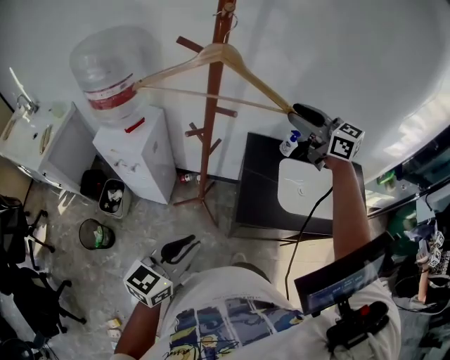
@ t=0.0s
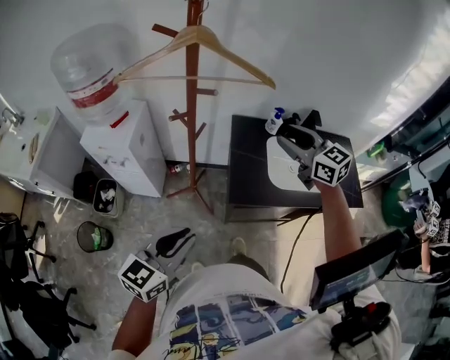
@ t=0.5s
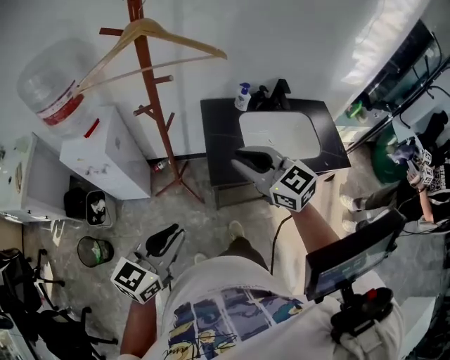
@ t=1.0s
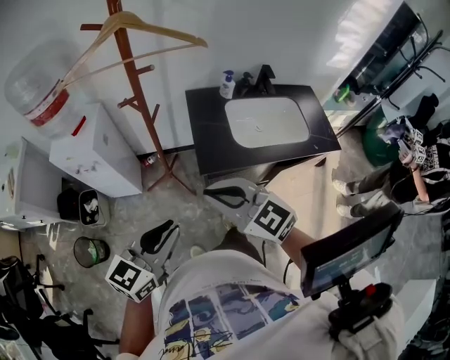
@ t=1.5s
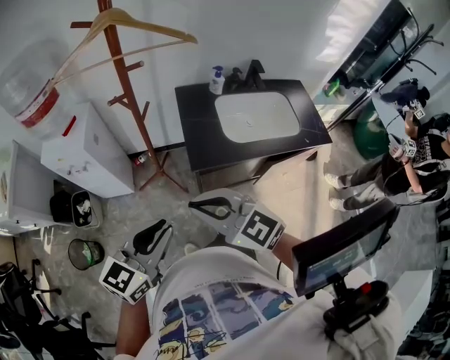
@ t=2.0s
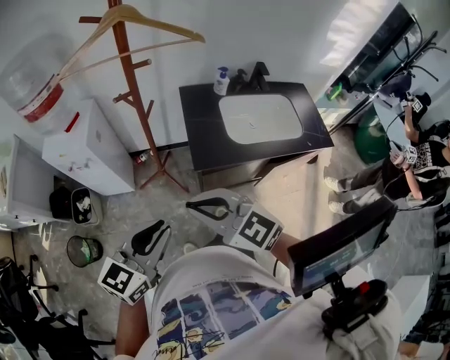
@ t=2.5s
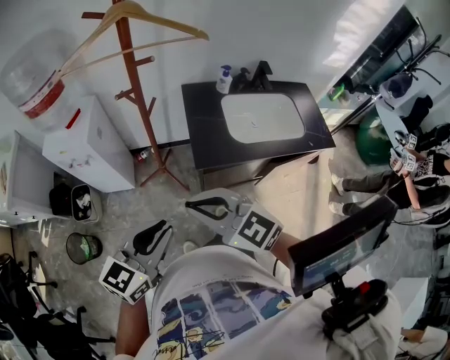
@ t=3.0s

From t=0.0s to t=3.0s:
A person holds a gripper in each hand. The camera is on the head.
From t=0.0s to t=1.5s: The left gripper travels backward by roughly 10 cm; the right gripper travels backward by some 35 cm, and closes its fingers.
From t=1.5s to t=3.0s: The right gripper changes place by approximately 5 cm.

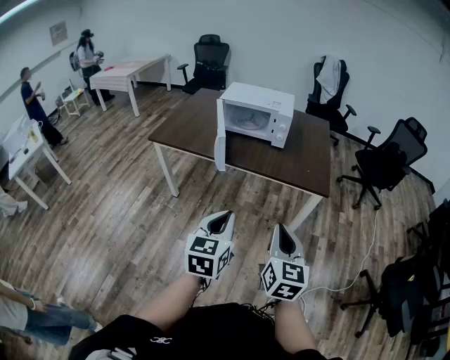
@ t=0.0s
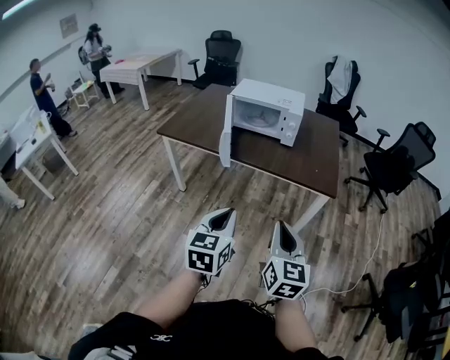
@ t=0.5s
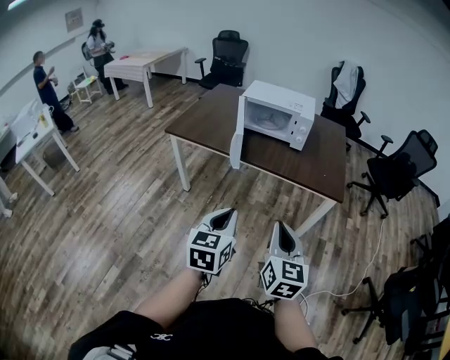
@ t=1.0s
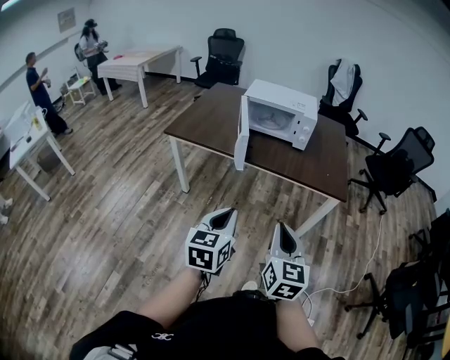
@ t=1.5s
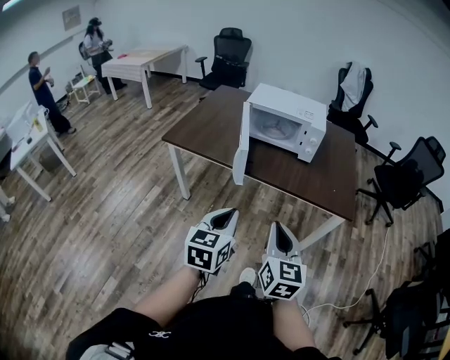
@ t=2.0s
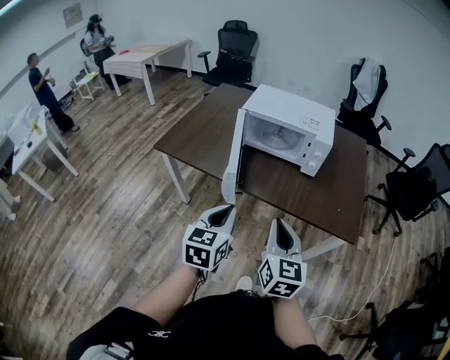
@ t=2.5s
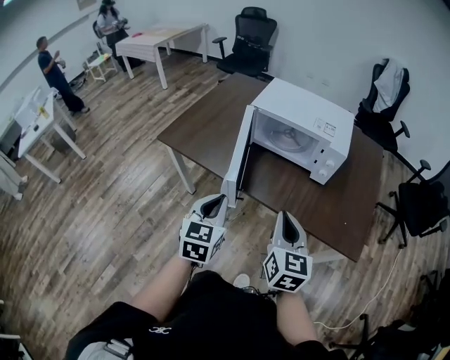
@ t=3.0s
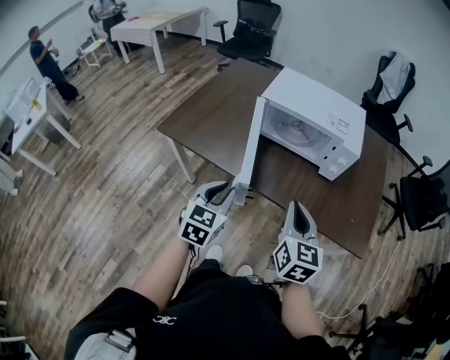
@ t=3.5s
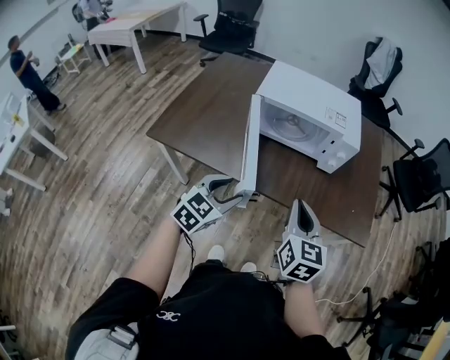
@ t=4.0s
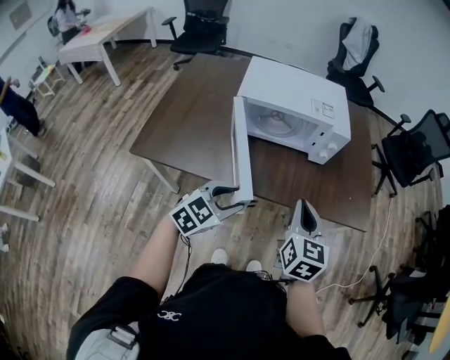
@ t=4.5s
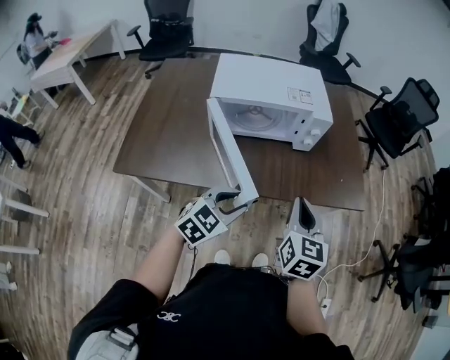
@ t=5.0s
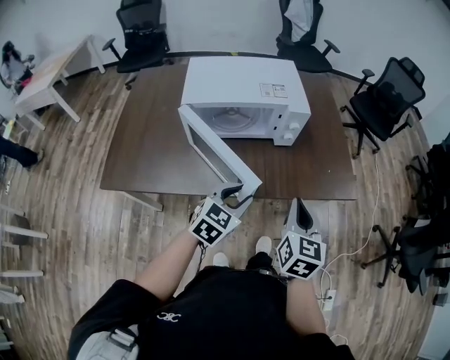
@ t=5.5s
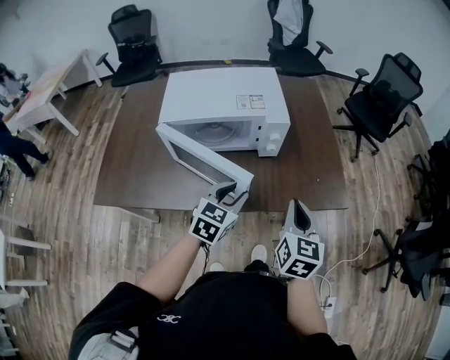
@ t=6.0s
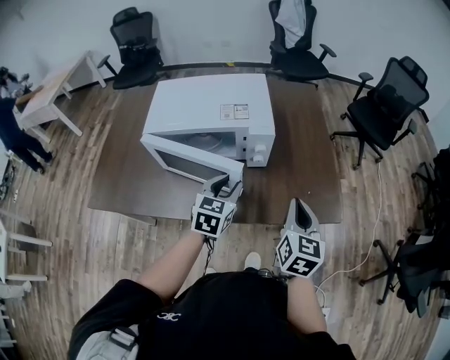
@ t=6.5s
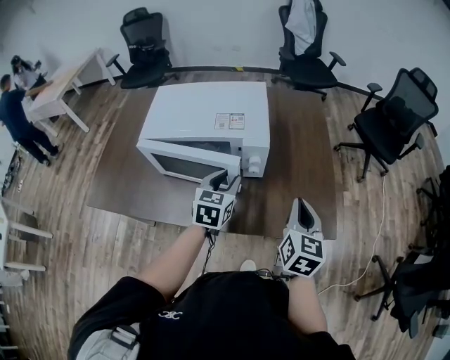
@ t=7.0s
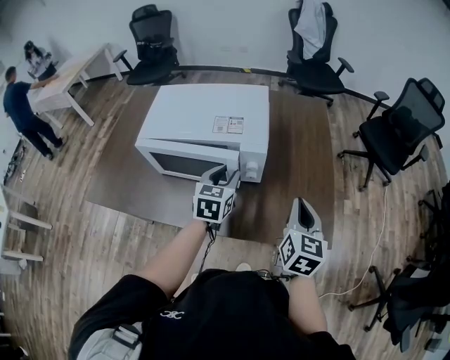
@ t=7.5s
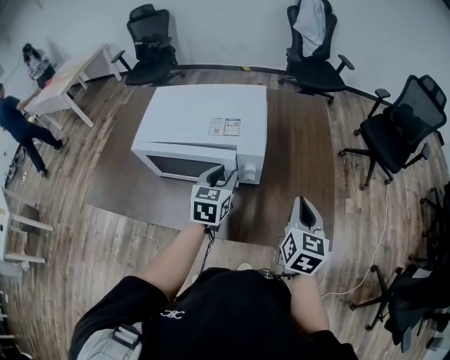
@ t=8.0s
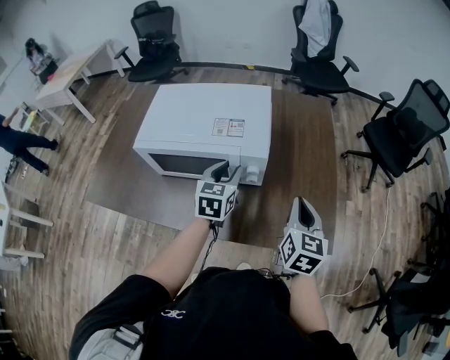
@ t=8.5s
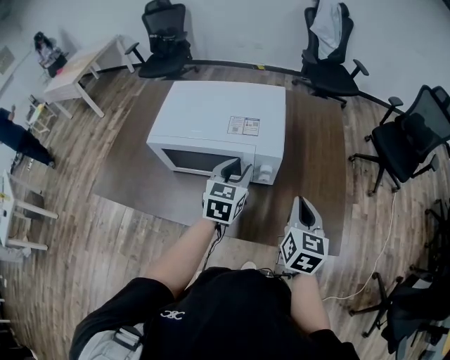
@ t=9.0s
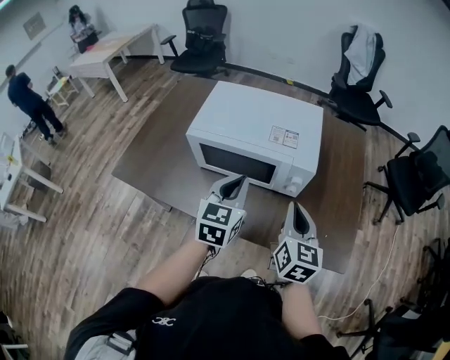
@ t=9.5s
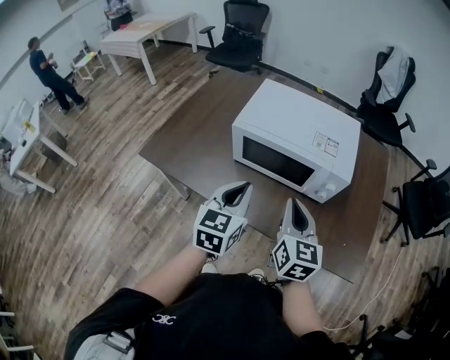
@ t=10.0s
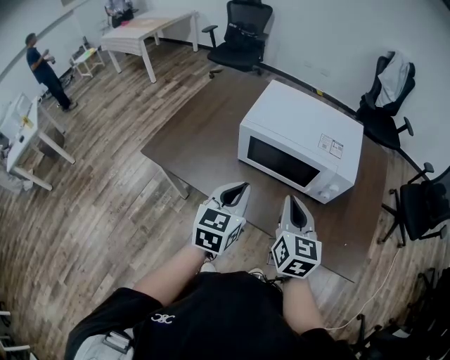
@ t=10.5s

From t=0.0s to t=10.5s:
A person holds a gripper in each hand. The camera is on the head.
From t=0.0s to t=2.0s: The left gripper heads forward and to the left, covering about 15 cm. The right gripper travels to the left and forward by roughly 20 cm.
From t=2.0s to t=4.0s: Both grippers move forward, roughly 30 cm. The left gripper swivels approximately 30 degrees, and opens.
From t=4.0s to t=6.5s: The left gripper goes approximately 30 cm forward and to the right. Meanwhile the right gripper shifts about 25 cm to the right and forward, and changes its angle by about 20 degrees.
From t=6.5s to t=8.5s: The grippers both shift forward by approximately 10 cm.
From t=8.5s to t=10.5s: The left gripper goes about 30 cm to the left and backward, and closes up; the right gripper goes some 30 cm to the left, and swivels some 30 degrees.

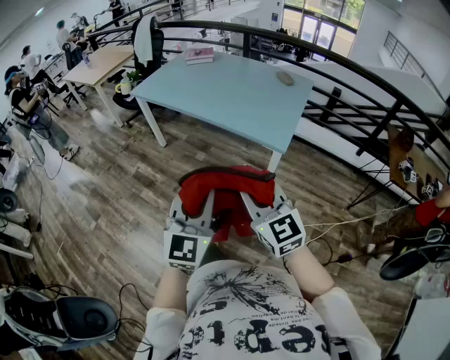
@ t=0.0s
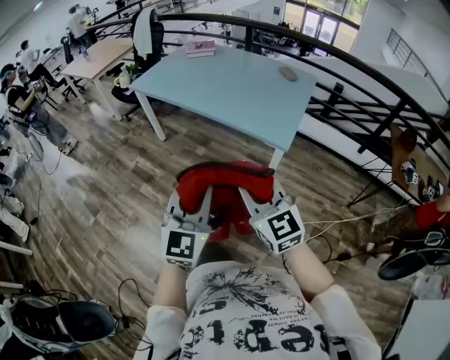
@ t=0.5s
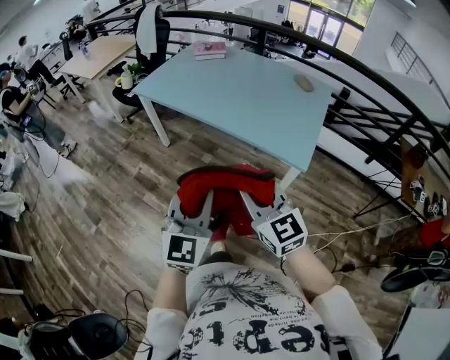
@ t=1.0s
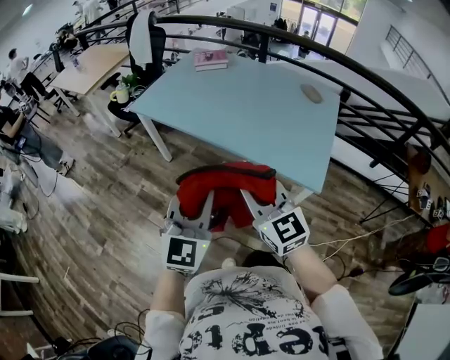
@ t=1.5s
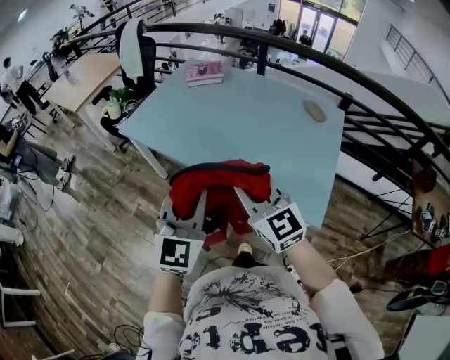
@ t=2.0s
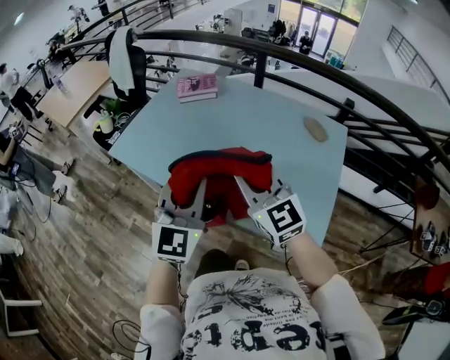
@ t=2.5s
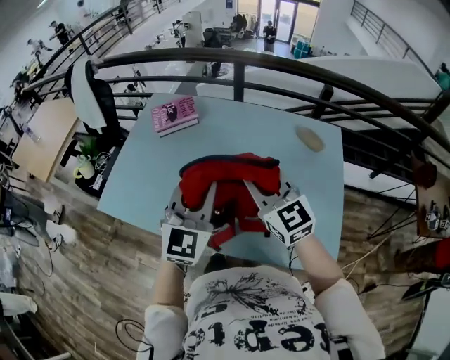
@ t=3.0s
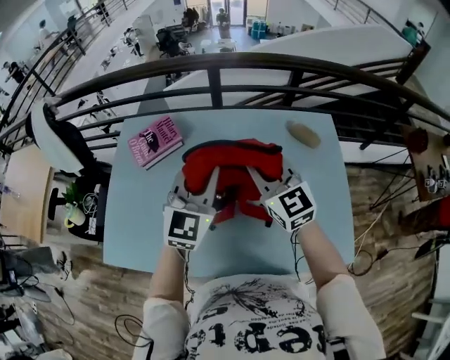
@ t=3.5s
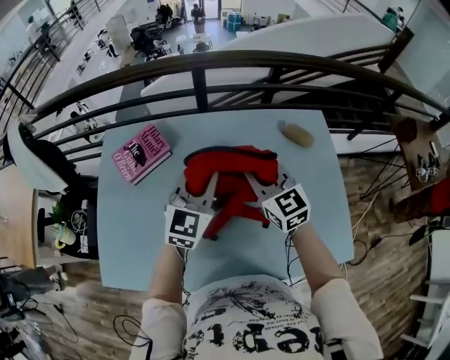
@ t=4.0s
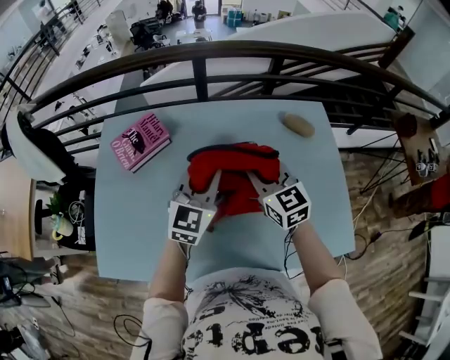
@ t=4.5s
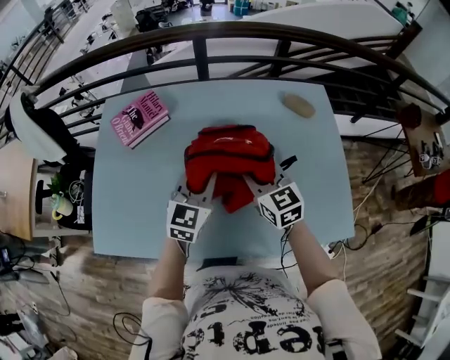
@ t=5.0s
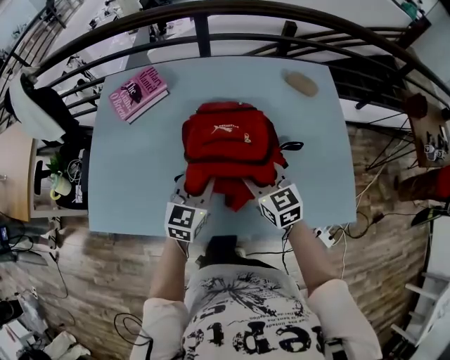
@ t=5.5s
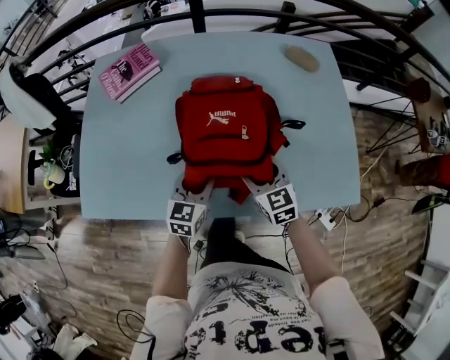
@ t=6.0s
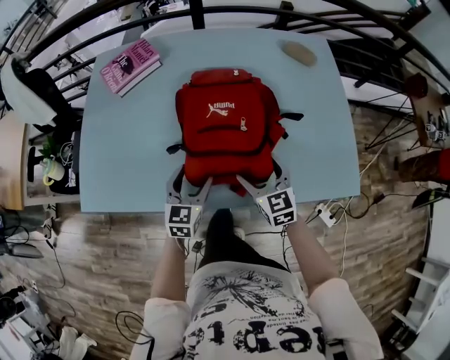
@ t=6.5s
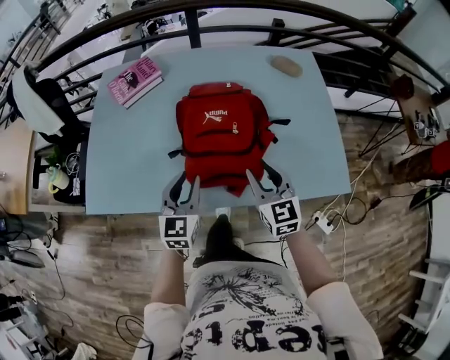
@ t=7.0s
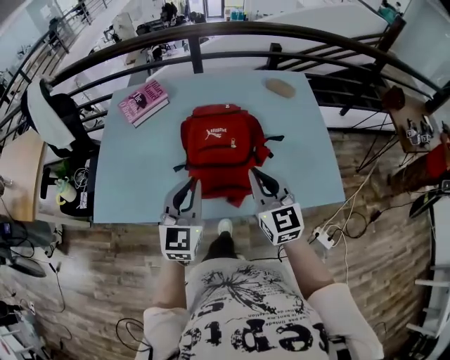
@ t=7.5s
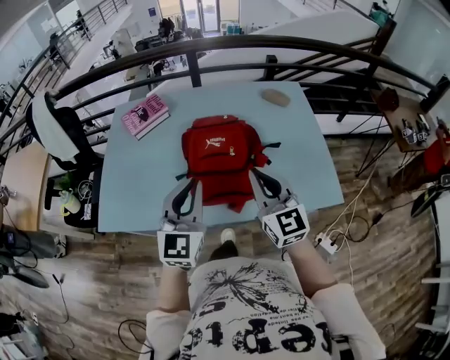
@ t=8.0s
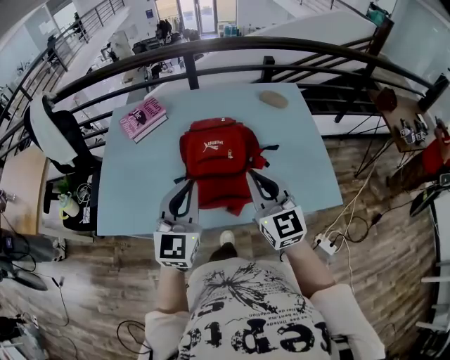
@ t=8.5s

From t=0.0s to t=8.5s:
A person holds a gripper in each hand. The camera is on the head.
From t=0.0s to t=2.0s: Both grippers are carried forward, roughly 50 cm.
From t=2.0s to t=4.0s: Both grippers are carried about 60 cm. The left gripper turns by approximately 40 degrees, while the right gripper swivels some 40 degrees.
From t=4.0s to t=6.5s: Both grippers move backward and downward, some 35 cm. The right gripper opens up. The left gripper turns by about 30 degrees, and opens up.
From t=6.5s to t=8.5s: The two grippers go about 25 cm upward. The left gripper rotates roughly 30 degrees, and closes, while the right gripper changes its angle by approximately 30 degrees, and closes up.

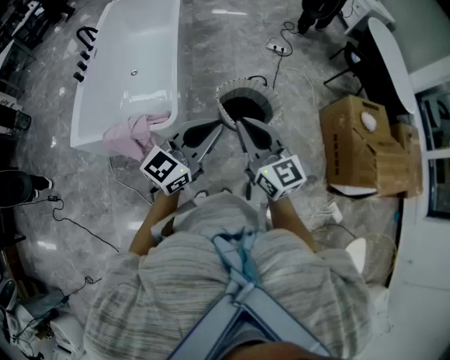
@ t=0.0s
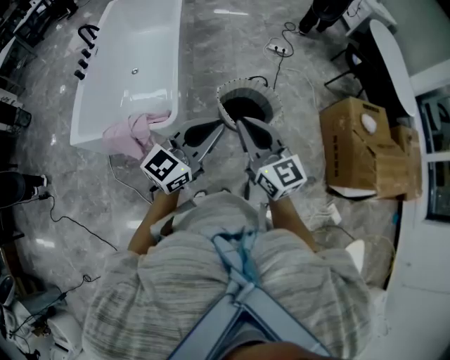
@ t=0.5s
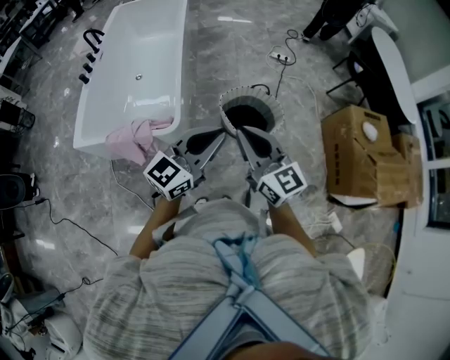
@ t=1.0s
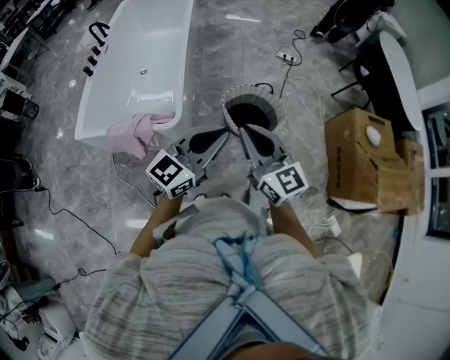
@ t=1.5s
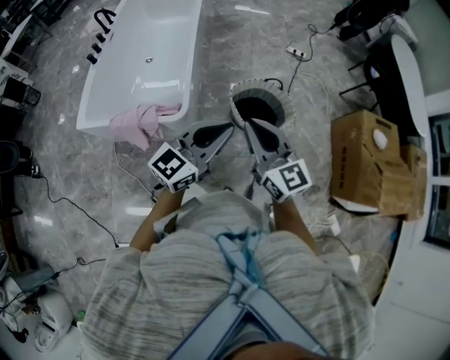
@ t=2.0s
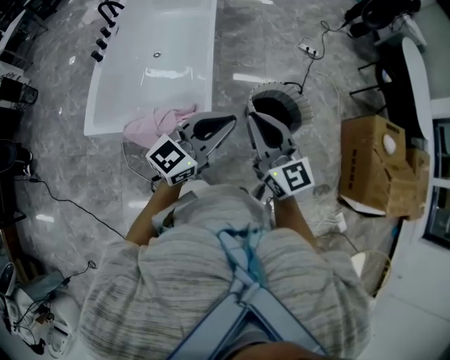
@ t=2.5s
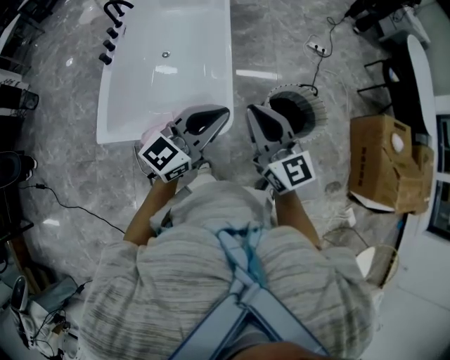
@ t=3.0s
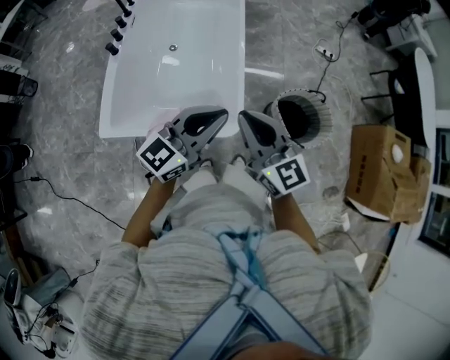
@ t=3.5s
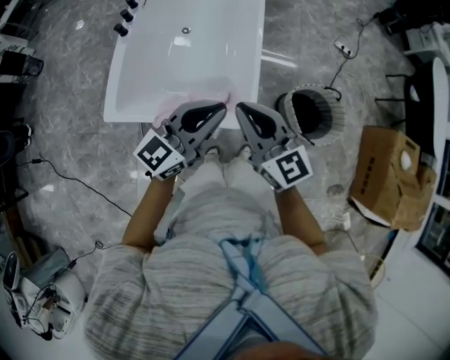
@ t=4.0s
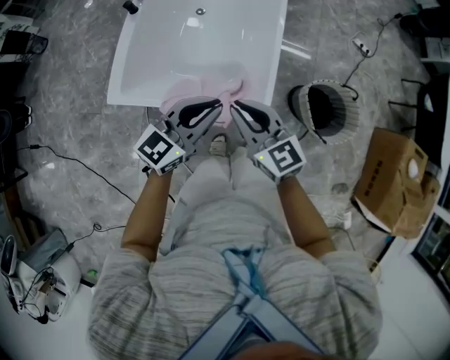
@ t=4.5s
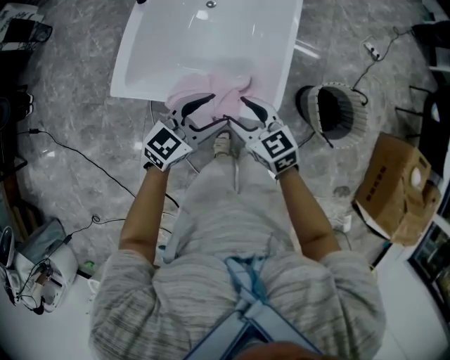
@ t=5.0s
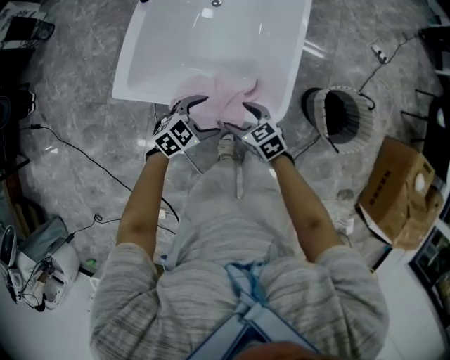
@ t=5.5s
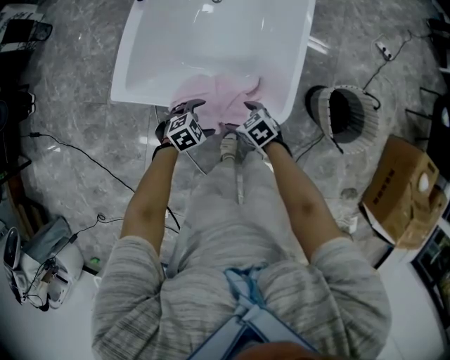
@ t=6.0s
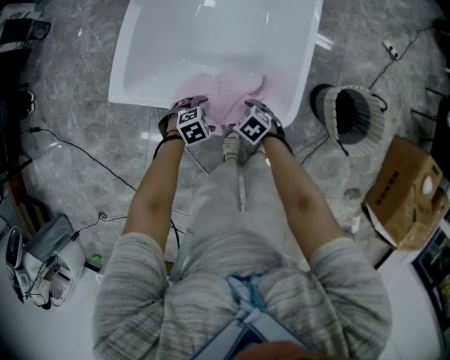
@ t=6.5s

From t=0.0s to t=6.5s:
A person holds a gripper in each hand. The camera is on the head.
From t=0.0s to t=2.0s: The grippers make only small movements.
From t=2.0s to t=4.5s: Both grippers are carried to the left, roughly 50 cm. The right gripper turns by approximately 20 degrees.
From t=4.5s to t=6.5s: Both grippers travel together downward, about 40 cm. The right gripper points its fingers about 50 degrees further downward, and opens up; the left gripper tips its fingers downward by roughly 60 degrees, and opens its fingers.
